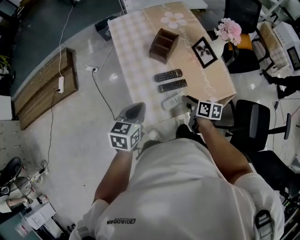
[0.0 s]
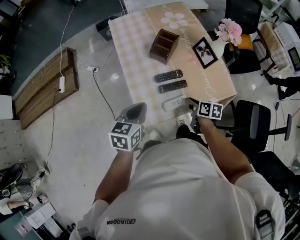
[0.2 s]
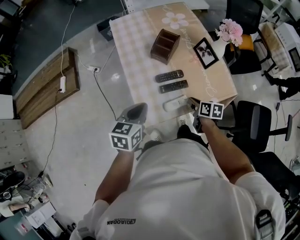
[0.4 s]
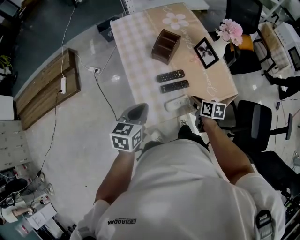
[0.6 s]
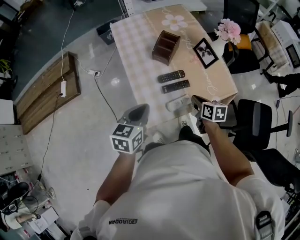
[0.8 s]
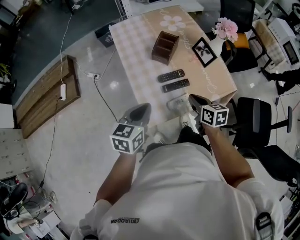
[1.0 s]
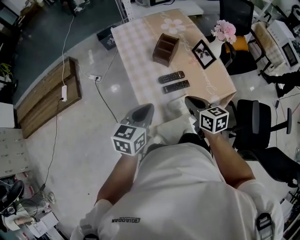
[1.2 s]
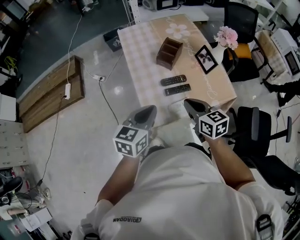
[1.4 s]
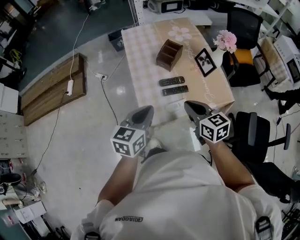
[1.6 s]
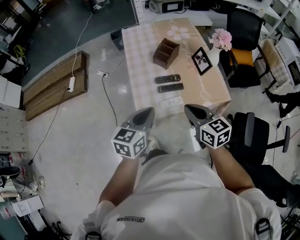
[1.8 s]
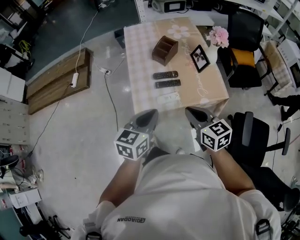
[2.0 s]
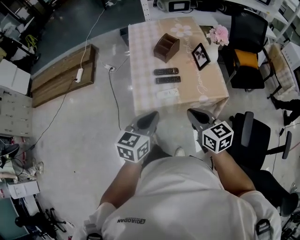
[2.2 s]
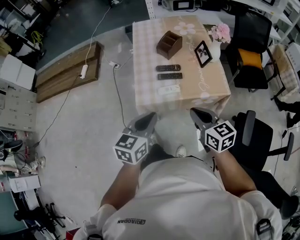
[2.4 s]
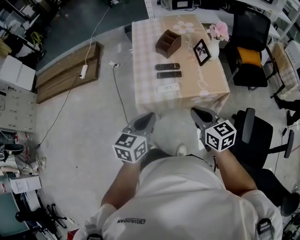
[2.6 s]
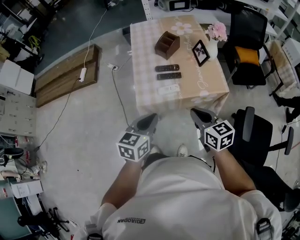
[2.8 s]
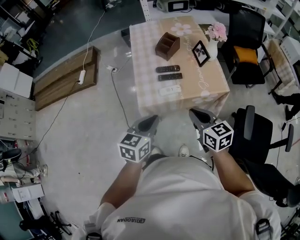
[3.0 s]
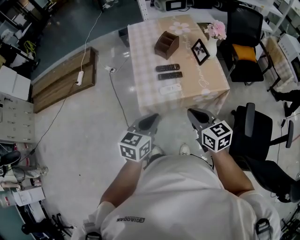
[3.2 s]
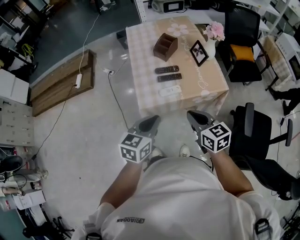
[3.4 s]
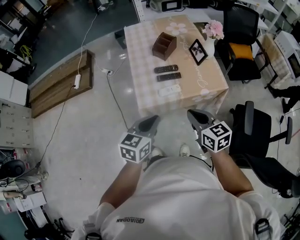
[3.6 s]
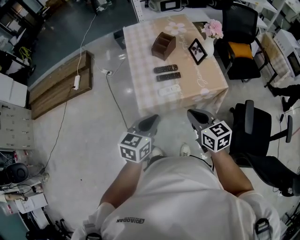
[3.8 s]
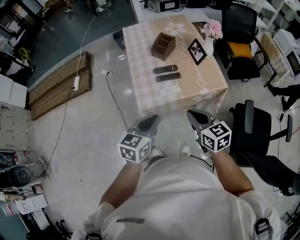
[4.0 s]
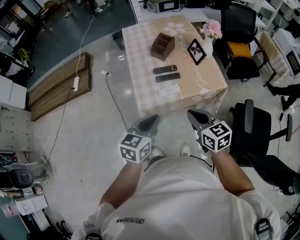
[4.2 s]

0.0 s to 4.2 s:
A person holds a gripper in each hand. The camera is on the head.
0.0 to 1.4 s: The right gripper shifts about 15 cm upward, changes its angle by approximately 40 degrees, and closes; the left gripper heads upward, covering approximately 5 cm.
1.4 to 2.8 s: Both grippers travel together backward and to the right, some 20 cm.
2.8 to 4.2 s: The grippers stay close to where they were, moving slightly.

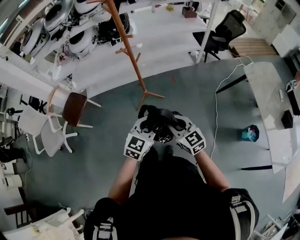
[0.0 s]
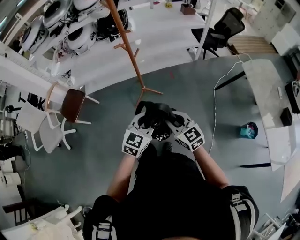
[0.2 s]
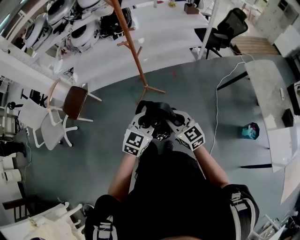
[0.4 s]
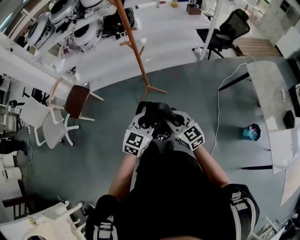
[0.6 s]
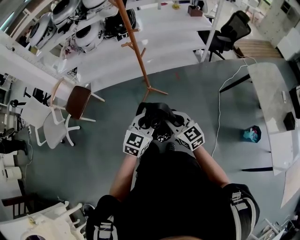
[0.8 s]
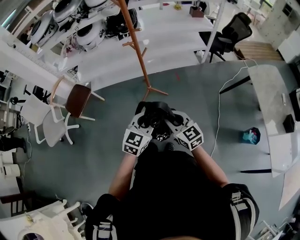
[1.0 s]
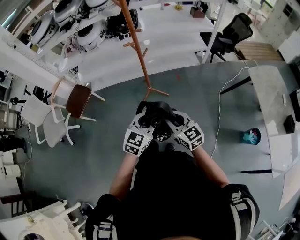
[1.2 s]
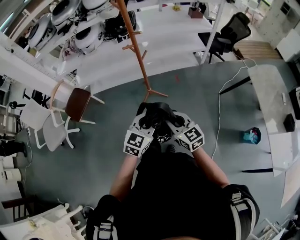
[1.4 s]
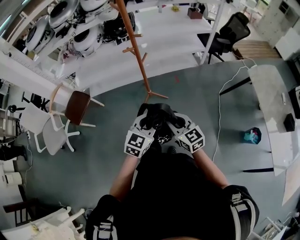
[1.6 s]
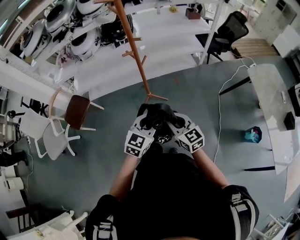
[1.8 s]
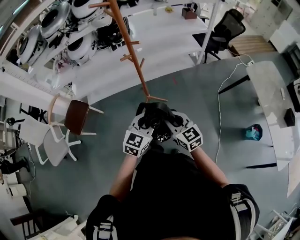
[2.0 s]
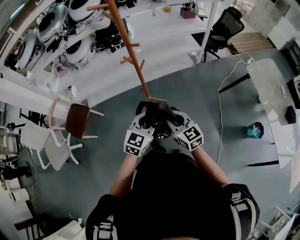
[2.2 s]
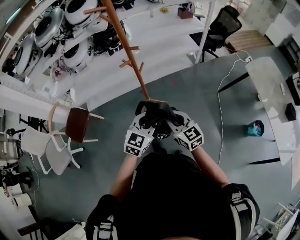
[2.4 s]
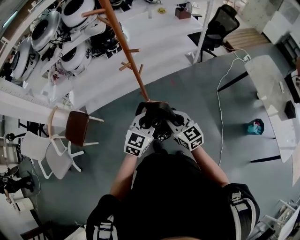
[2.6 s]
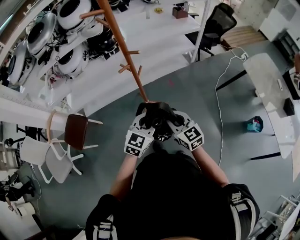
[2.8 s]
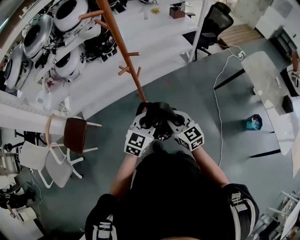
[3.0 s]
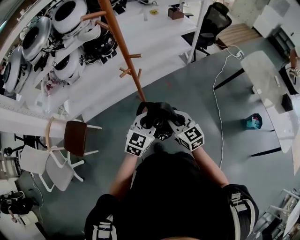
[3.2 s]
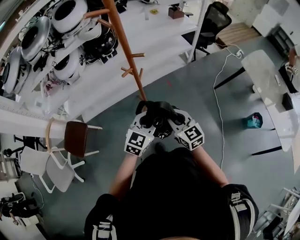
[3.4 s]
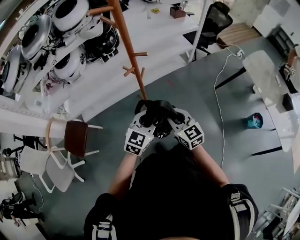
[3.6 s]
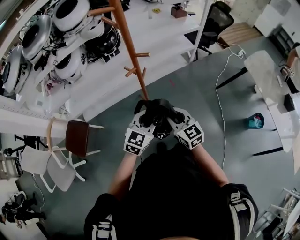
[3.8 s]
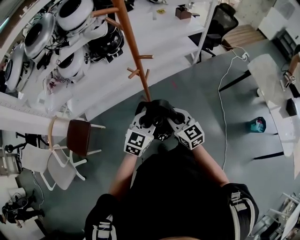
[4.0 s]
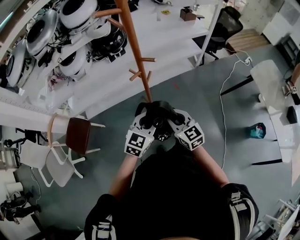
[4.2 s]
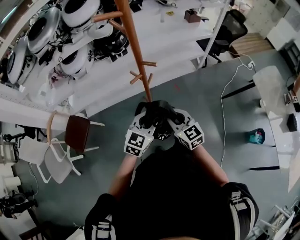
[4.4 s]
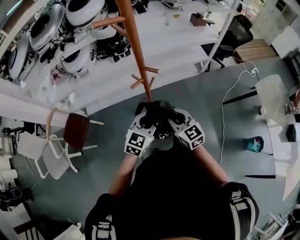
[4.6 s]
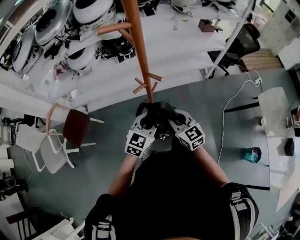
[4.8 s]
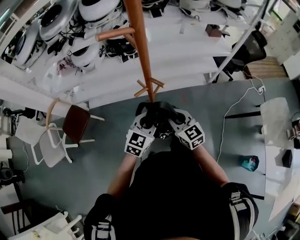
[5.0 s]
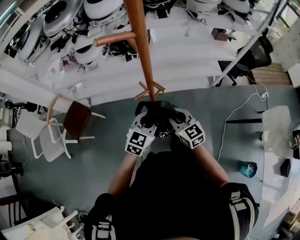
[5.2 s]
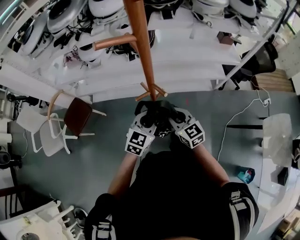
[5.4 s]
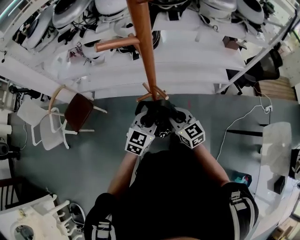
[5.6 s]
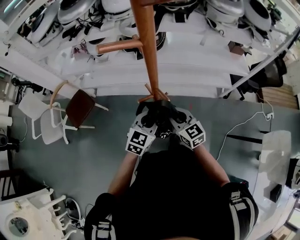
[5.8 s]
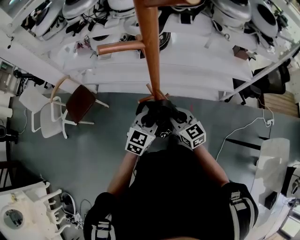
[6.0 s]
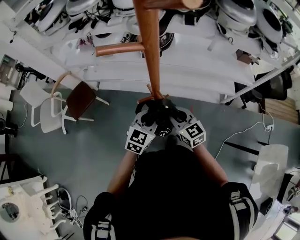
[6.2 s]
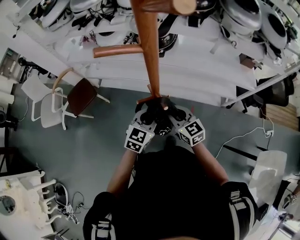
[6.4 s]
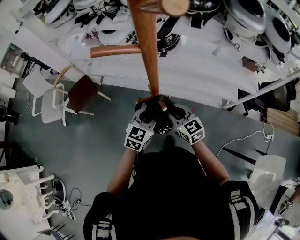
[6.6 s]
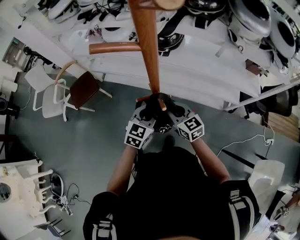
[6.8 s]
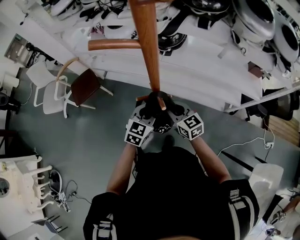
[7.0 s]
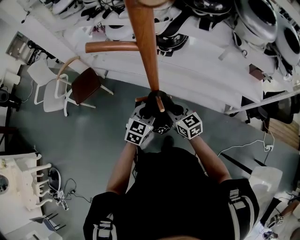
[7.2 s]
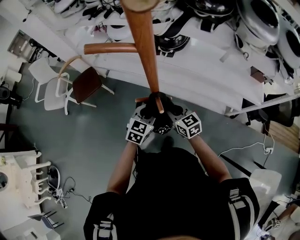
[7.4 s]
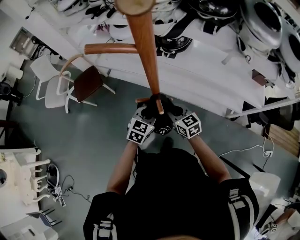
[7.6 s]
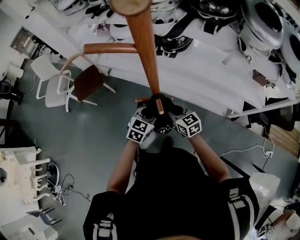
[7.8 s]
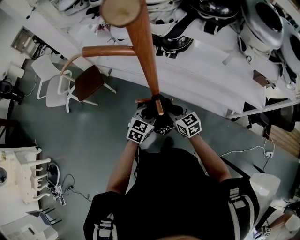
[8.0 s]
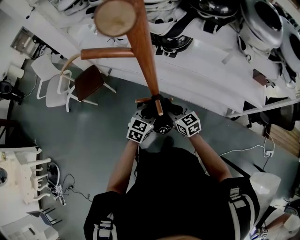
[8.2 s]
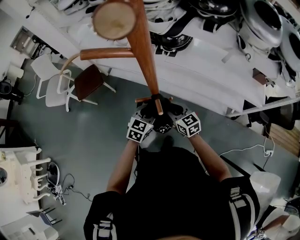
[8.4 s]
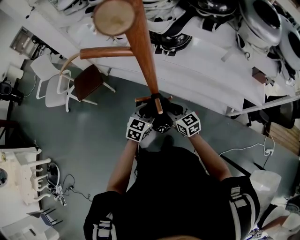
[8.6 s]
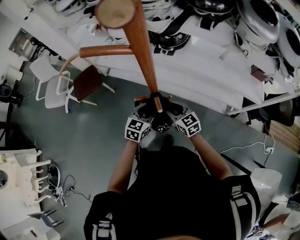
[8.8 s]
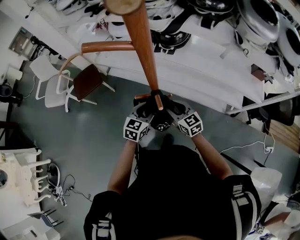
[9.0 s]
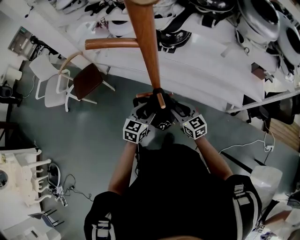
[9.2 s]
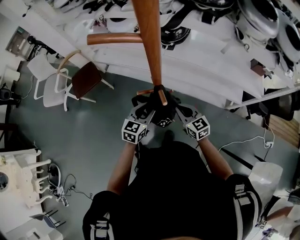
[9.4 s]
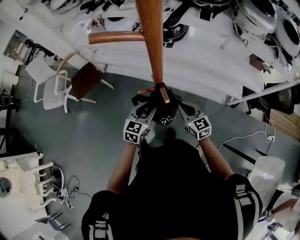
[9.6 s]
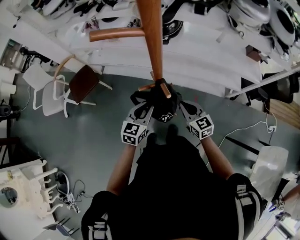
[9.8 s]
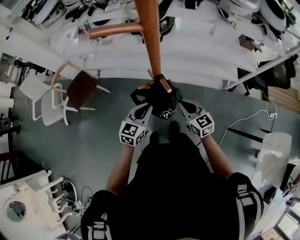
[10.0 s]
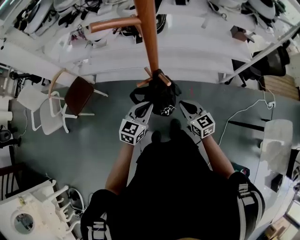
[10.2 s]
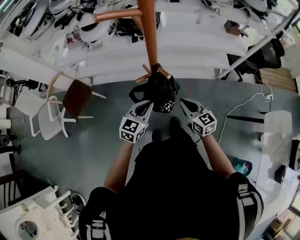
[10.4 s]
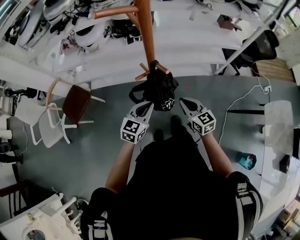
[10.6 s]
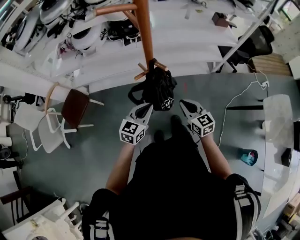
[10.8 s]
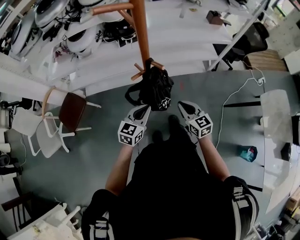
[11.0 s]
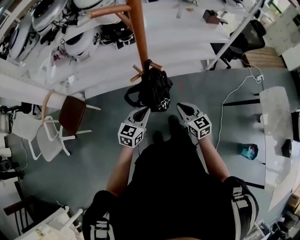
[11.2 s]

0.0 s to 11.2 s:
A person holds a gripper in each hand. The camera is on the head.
0.0 to 1.6 s: There are only small adjustments of the grippers.
1.6 to 3.2 s: The grippers both shift forward and to the left by some 20 cm.
3.2 to 4.8 s: Both grippers travel together forward, approximately 15 cm.
4.8 to 6.4 s: The right gripper changes place by about 15 cm, and swivels some 30 degrees; the left gripper moves some 15 cm, and swivels roughly 30 degrees.
6.4 to 8.0 s: The grippers both shift downward and forward by about 10 cm.
8.0 to 9.6 s: The right gripper goes about 5 cm backward. Meanwhile the left gripper shifts about 10 cm to the left and backward.
9.6 to 11.2 s: The left gripper shifts by roughly 15 cm, rotates about 30 degrees, and closes its fingers; the right gripper shifts by approximately 15 cm, and turns by about 30 degrees.

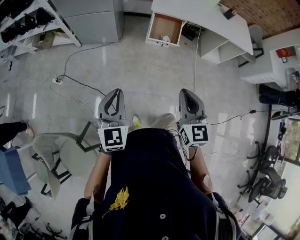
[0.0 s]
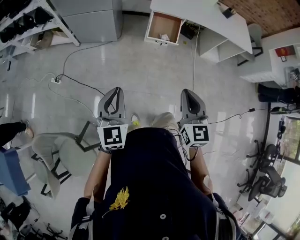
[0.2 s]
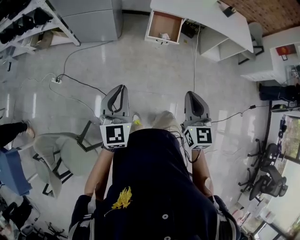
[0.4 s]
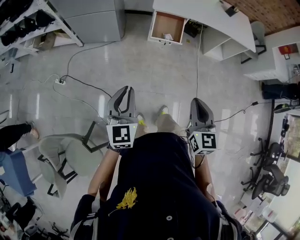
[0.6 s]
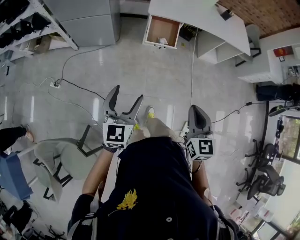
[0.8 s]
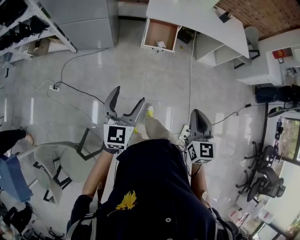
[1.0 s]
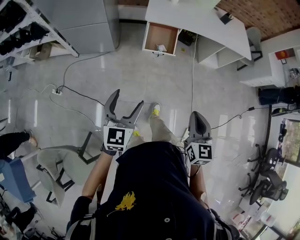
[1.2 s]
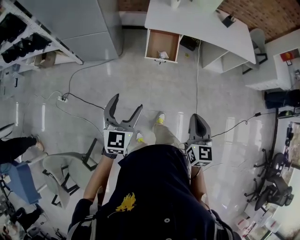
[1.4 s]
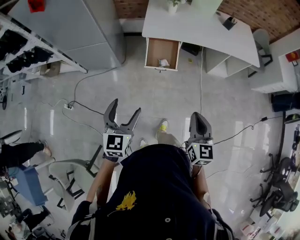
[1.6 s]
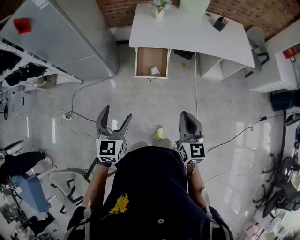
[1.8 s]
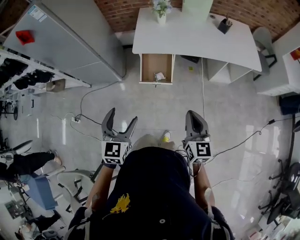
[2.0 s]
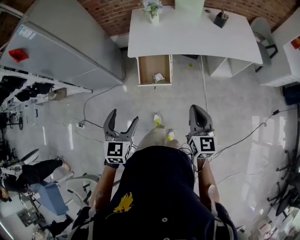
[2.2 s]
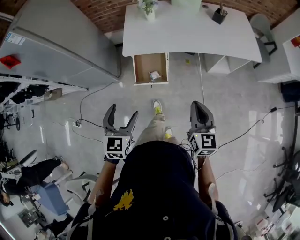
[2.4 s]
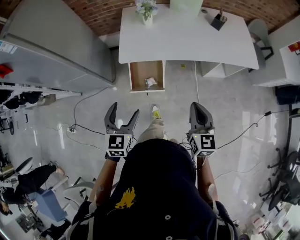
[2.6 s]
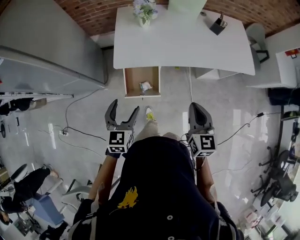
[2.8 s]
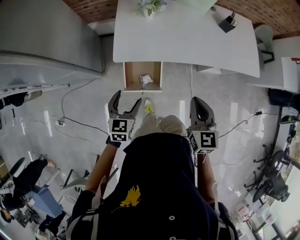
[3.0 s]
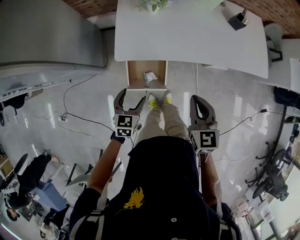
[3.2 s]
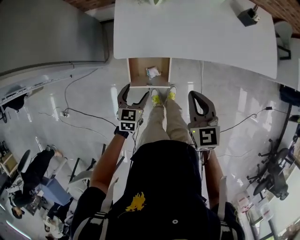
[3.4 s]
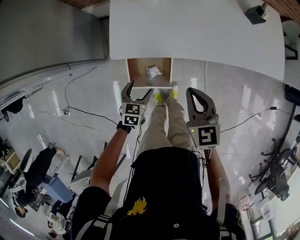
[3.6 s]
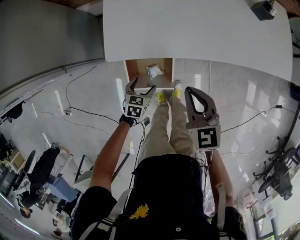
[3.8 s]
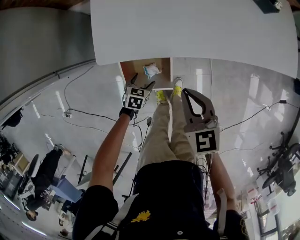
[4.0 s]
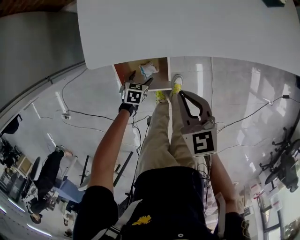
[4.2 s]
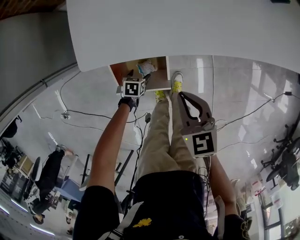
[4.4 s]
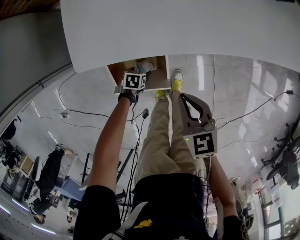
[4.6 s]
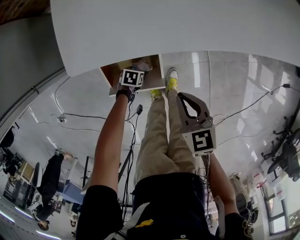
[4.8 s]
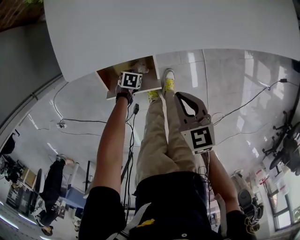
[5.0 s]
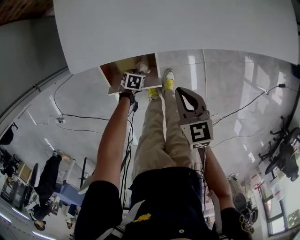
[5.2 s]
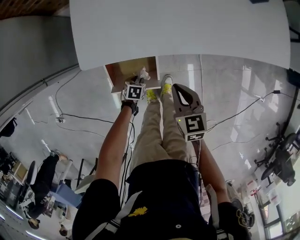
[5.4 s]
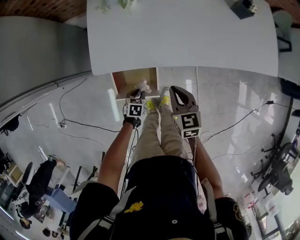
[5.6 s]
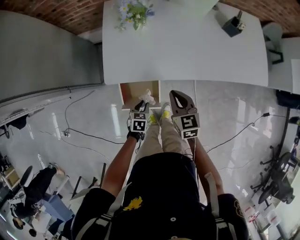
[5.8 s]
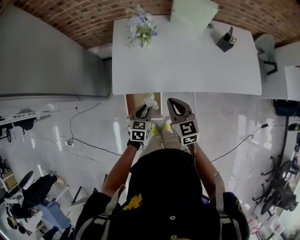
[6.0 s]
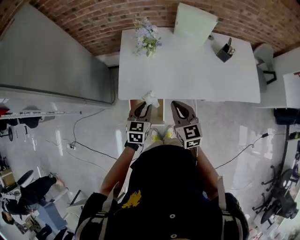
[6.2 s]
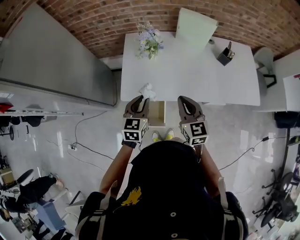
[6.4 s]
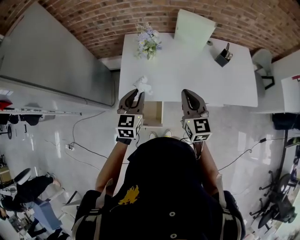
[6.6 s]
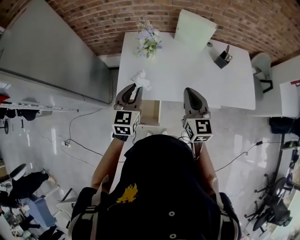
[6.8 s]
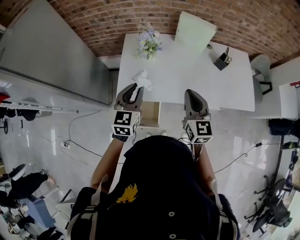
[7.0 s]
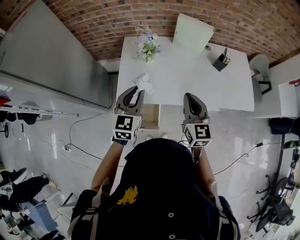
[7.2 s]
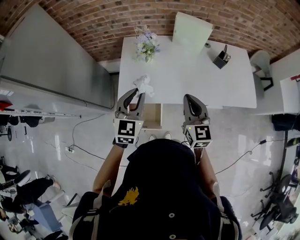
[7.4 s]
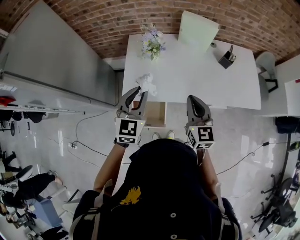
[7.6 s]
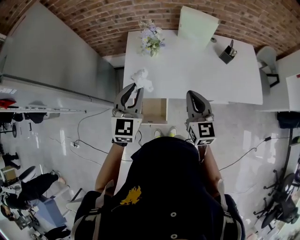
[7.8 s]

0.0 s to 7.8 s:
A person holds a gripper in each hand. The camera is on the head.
0.0 to 1.6 s: The grippers both shift forward and to the right by roughly 25 cm. The left gripper opens up.
1.6 to 3.2 s: The pair of grippers is taken forward, some 50 cm. The left gripper heads downward, covering roughly 20 cm, and rotates roughly 20 degrees.
3.2 to 4.6 s: The left gripper heads downward, covering roughly 50 cm, and points its fingers approximately 30 degrees further downward. The right gripper heads downward, covering roughly 30 cm.
4.6 to 6.2 s: The right gripper moves upward, about 30 cm. Meanwhile the left gripper moves upward, some 60 cm, tips its fingers upward by about 40 degrees, and closes.
6.2 to 7.8 s: The right gripper goes about 10 cm upward. Meanwhile the left gripper heads upward, covering roughly 20 cm, and swivels some 30 degrees.
